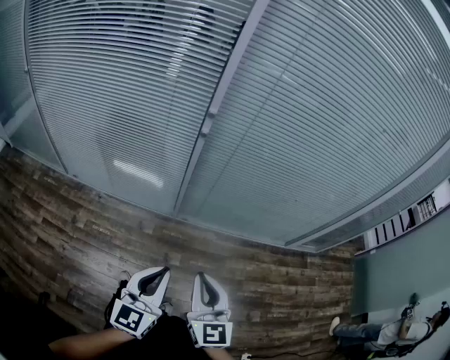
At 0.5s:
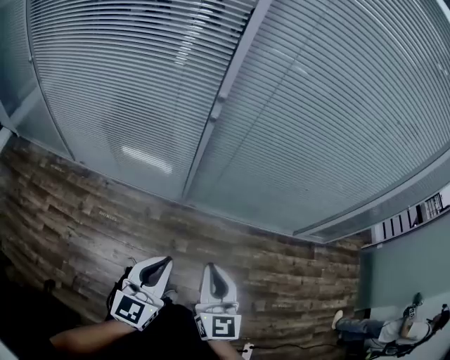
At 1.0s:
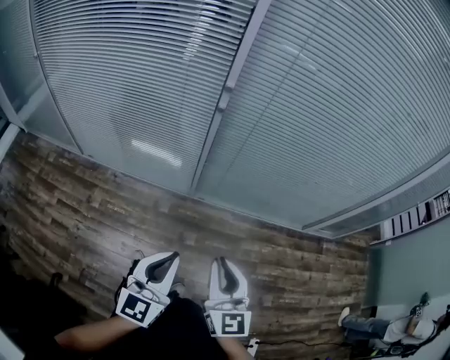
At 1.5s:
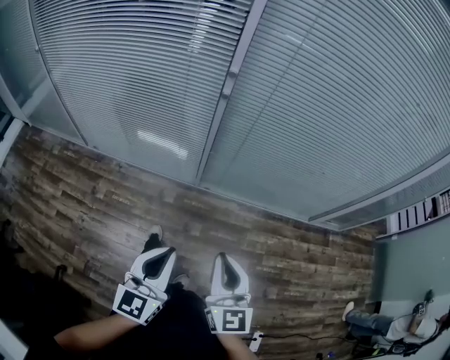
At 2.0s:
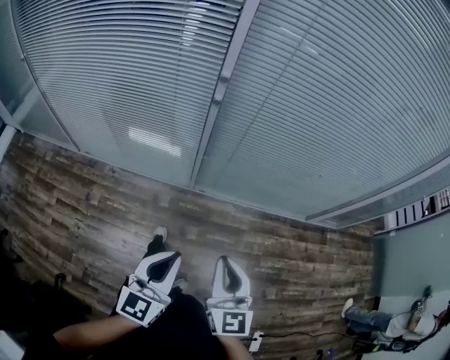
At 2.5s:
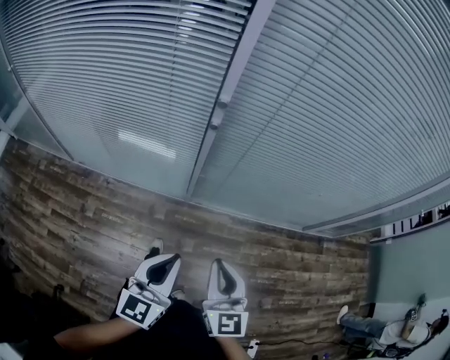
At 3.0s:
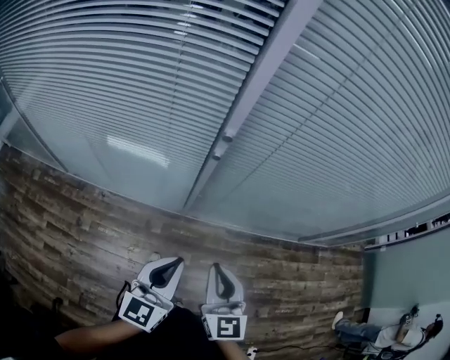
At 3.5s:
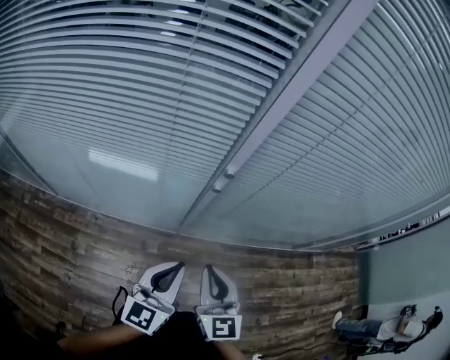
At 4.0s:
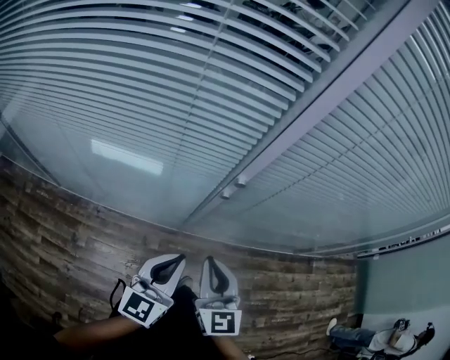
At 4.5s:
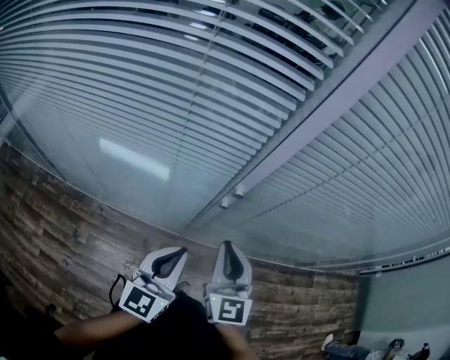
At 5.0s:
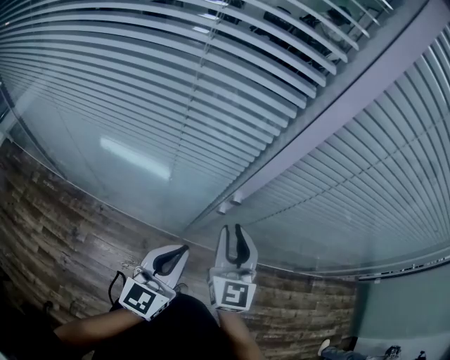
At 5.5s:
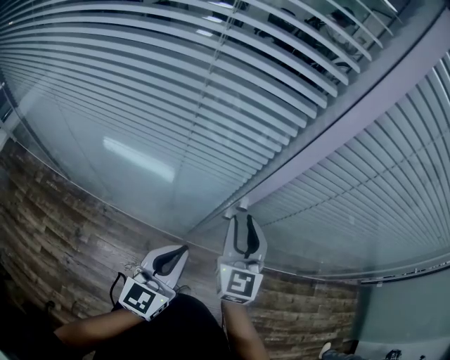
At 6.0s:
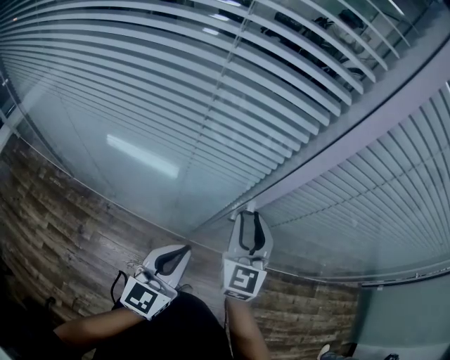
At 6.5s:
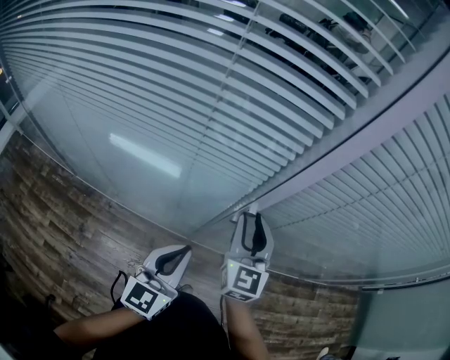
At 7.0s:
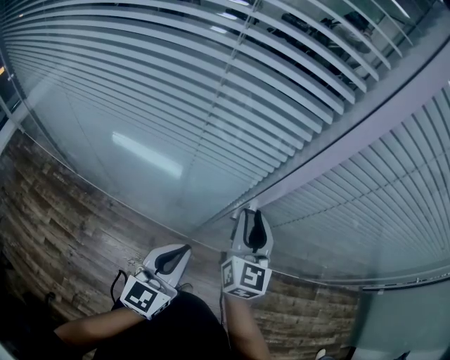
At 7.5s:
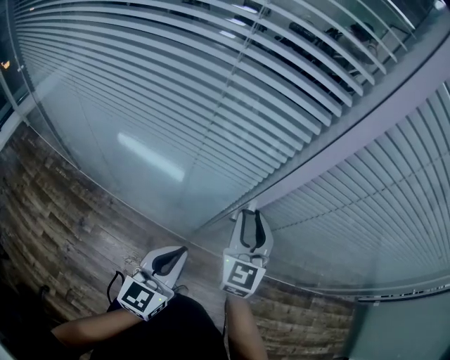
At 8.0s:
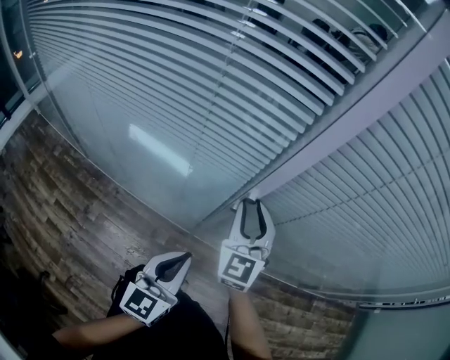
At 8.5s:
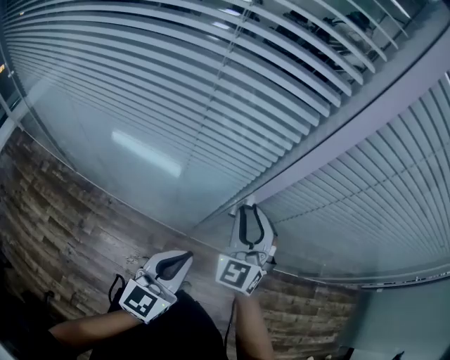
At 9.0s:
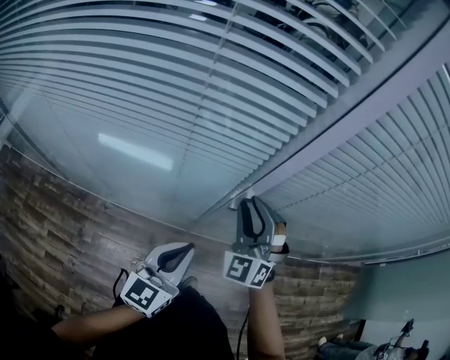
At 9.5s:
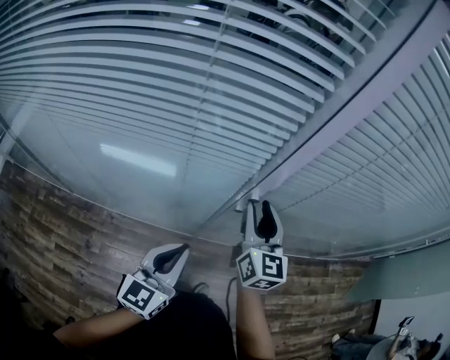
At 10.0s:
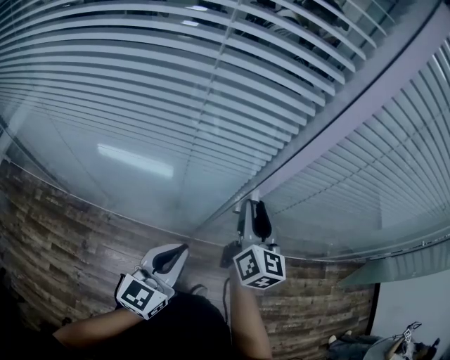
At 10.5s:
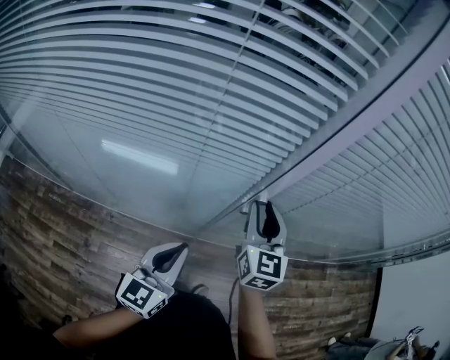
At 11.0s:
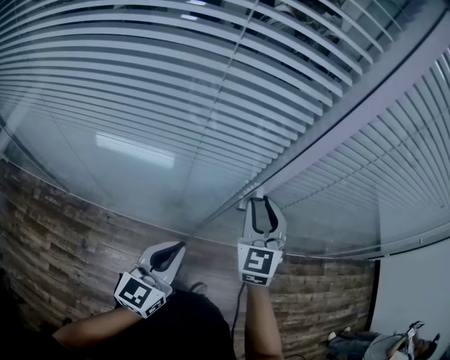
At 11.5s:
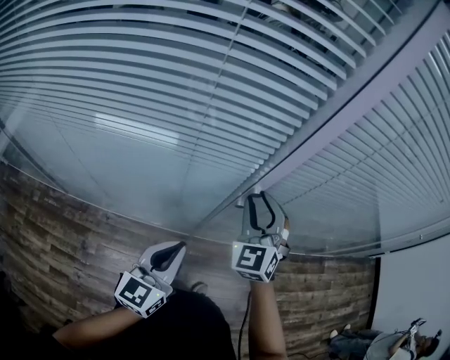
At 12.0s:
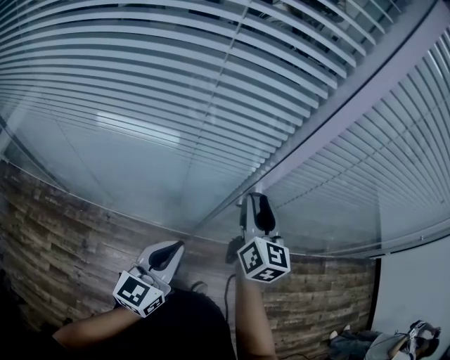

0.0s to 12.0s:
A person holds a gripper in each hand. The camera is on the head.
0.0s to 2.0s: The grippers stay close to where they were, moving slightly.
2.0s to 4.0s: The left gripper shifts some 25 cm forward, while the right gripper moves forward and to the left, about 30 cm.
4.0s to 6.0s: The right gripper travels forward by approximately 15 cm, and opens its fingers. The left gripper travels forward by approximately 5 cm.
6.0s to 8.0s: The left gripper shifts by some 5 cm.
8.0s to 10.0s: The left gripper shifts roughly 5 cm to the left, while the right gripper rotates around the line of its fingers by some 40 degrees, clockwise from behind.

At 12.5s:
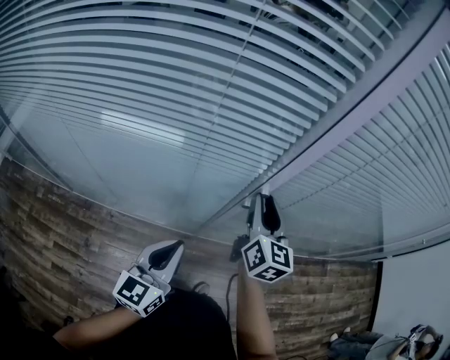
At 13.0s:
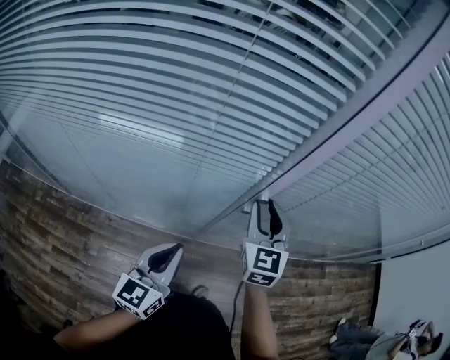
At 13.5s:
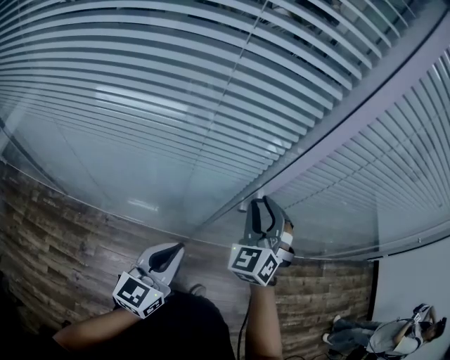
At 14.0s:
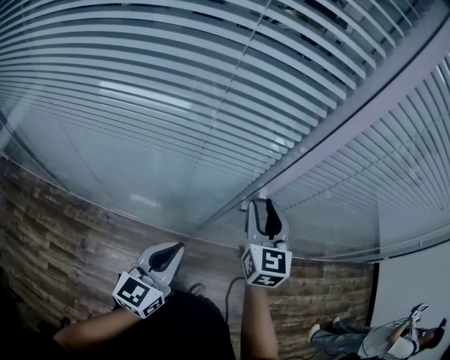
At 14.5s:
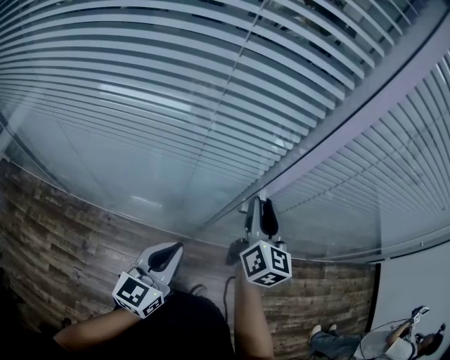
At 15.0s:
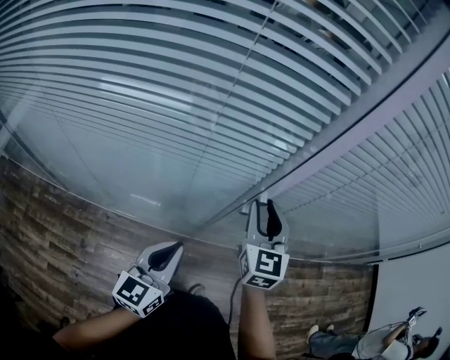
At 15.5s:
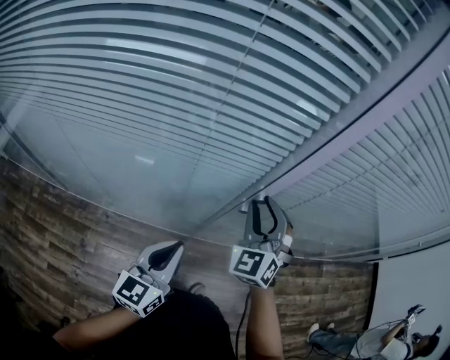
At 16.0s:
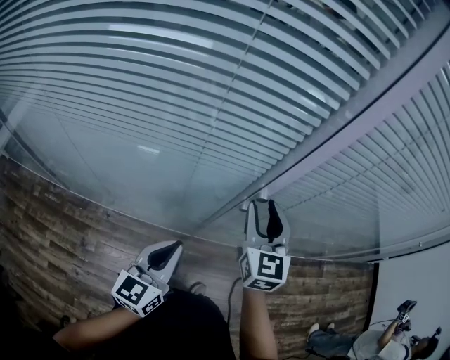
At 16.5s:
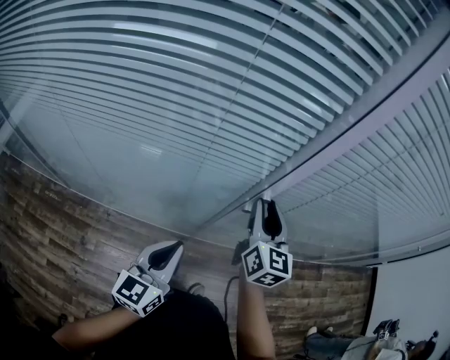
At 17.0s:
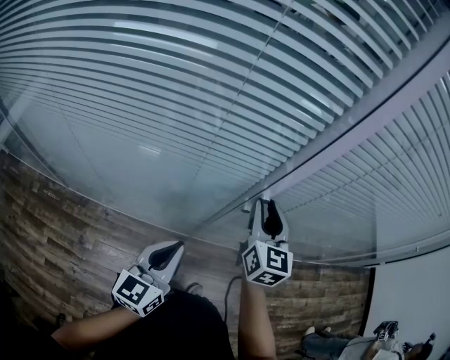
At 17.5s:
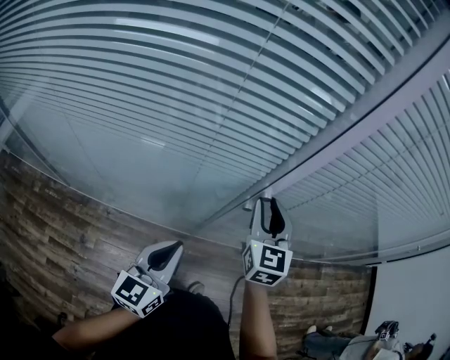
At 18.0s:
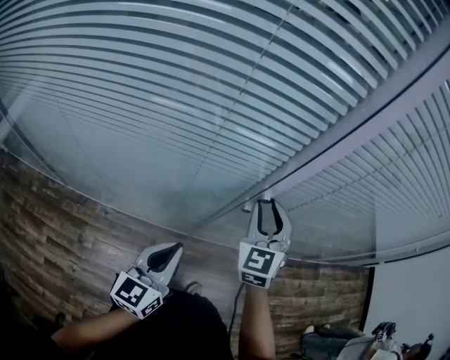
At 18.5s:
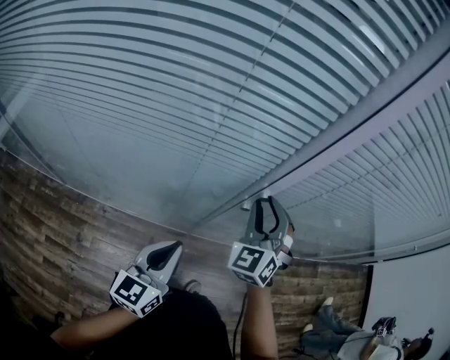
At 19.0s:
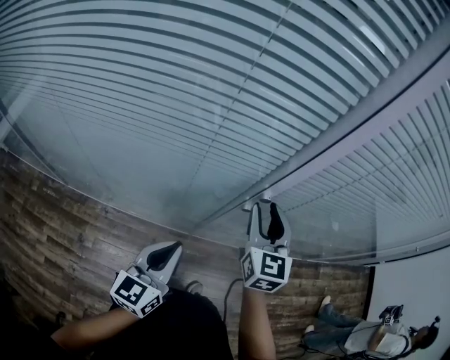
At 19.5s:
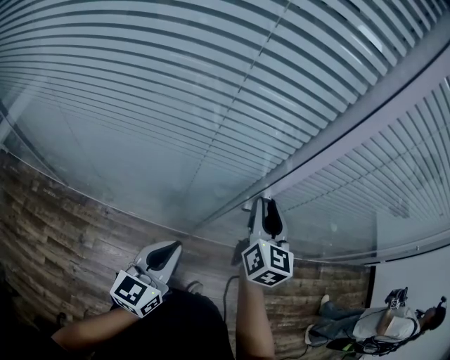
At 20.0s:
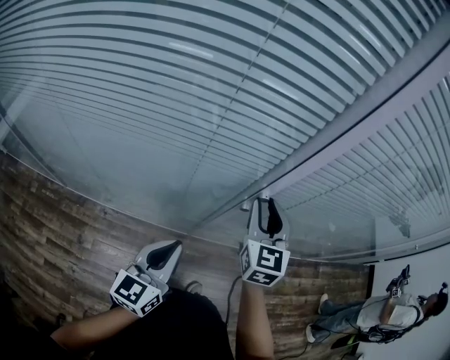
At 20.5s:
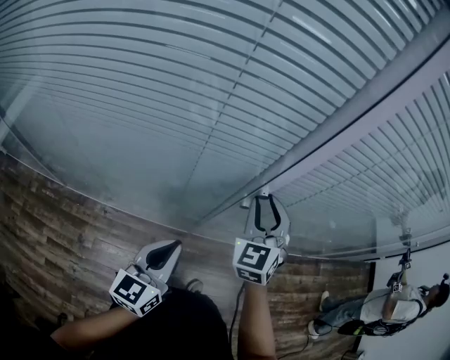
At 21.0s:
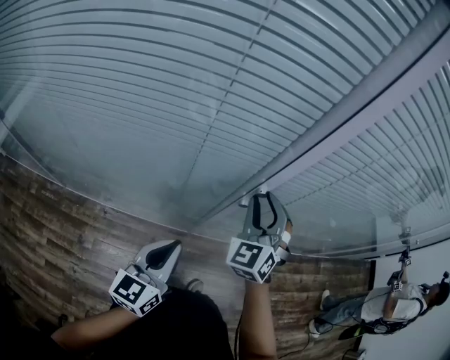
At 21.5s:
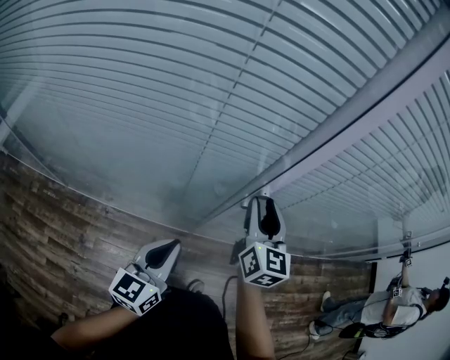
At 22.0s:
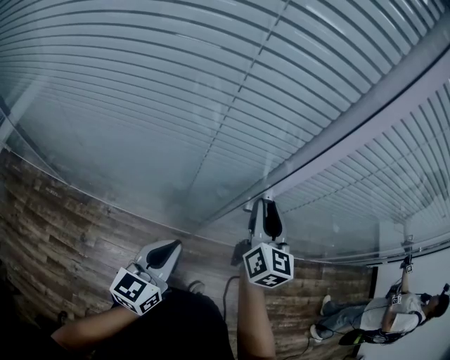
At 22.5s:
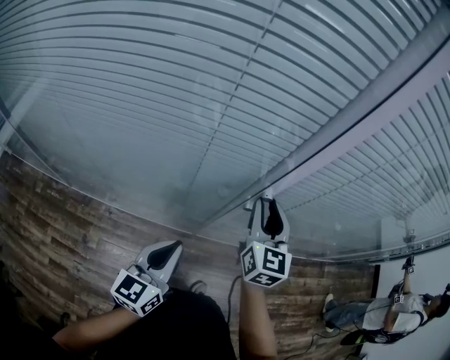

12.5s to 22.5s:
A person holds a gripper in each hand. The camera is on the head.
16.5s to 18.5s: The right gripper rolls counterclockwise, seen from behind, by roughly 60 degrees.
20.5s to 22.5s: The right gripper turns by about 30 degrees.

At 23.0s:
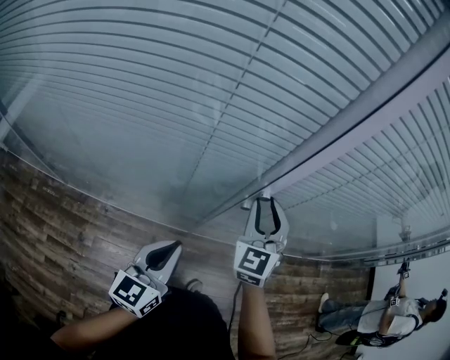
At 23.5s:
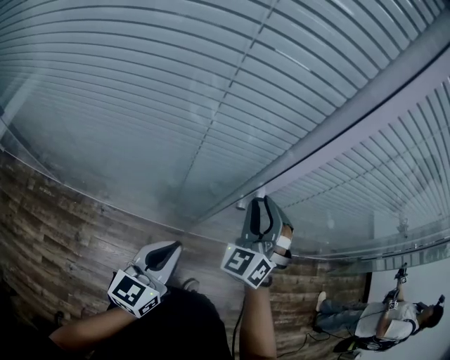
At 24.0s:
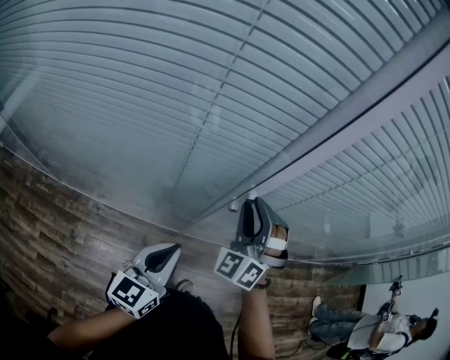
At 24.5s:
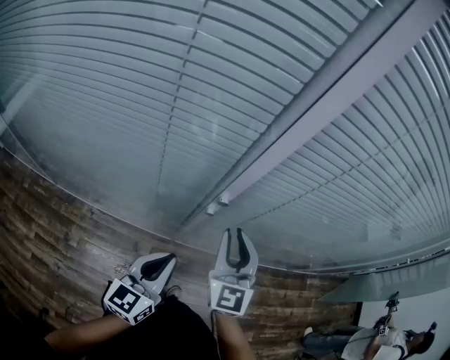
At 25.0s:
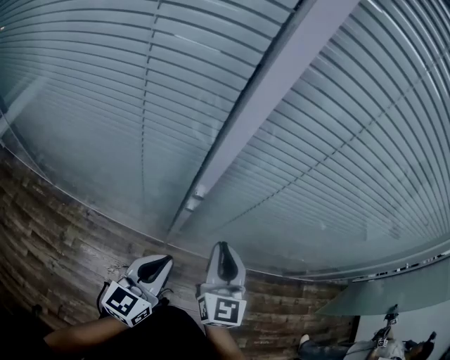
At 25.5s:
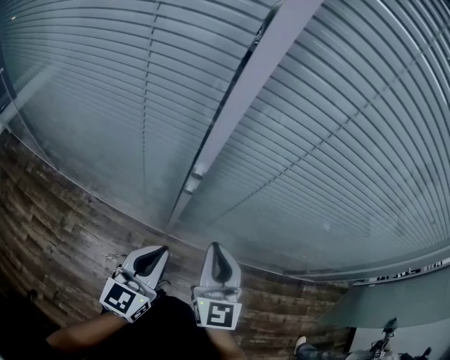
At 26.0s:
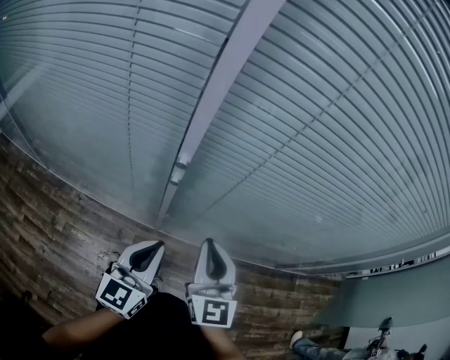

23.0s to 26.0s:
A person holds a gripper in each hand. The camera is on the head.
23.0s to 24.5s: The right gripper travels backward and to the right by about 10 cm, and changes its angle by approximately 20 degrees. The left gripper shifts some 10 cm to the right.
24.5s to 26.0s: The left gripper moves to the right, roughly 5 cm; the right gripper shifts roughly 10 cm backward and to the right.

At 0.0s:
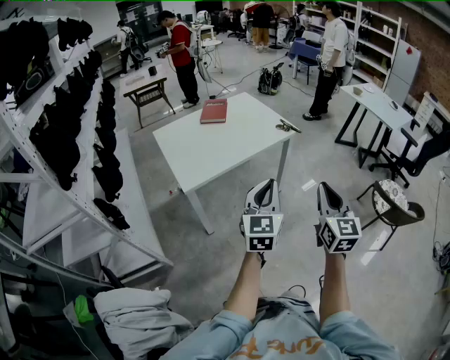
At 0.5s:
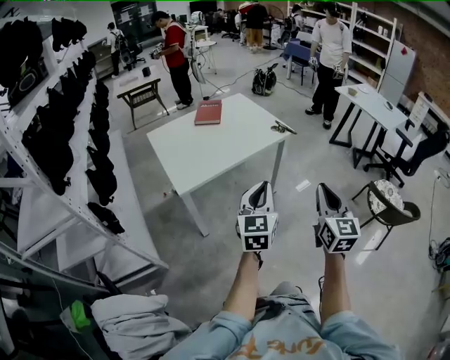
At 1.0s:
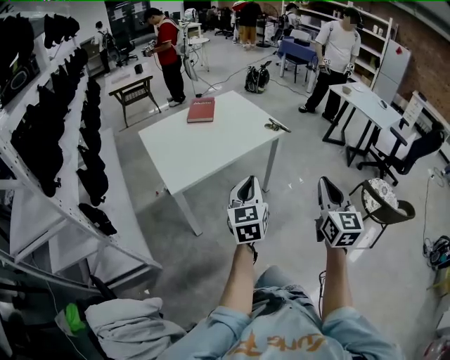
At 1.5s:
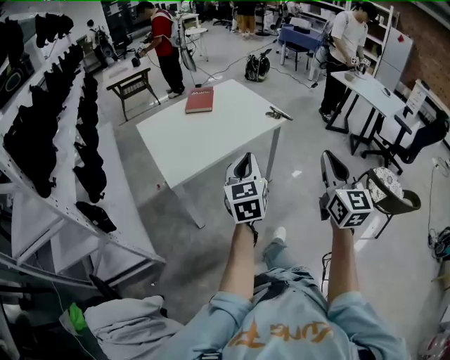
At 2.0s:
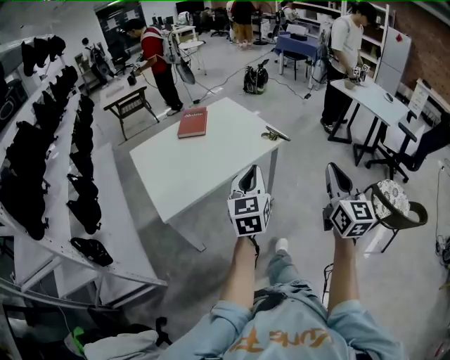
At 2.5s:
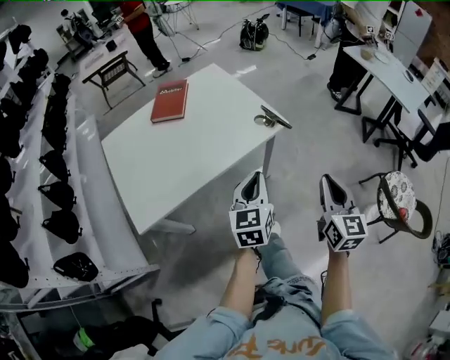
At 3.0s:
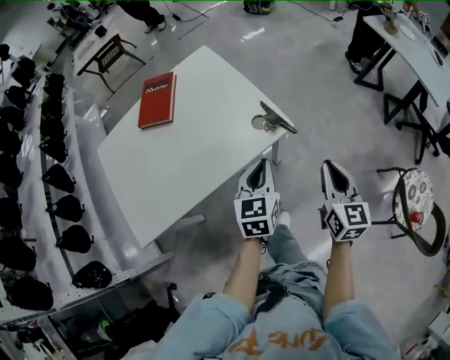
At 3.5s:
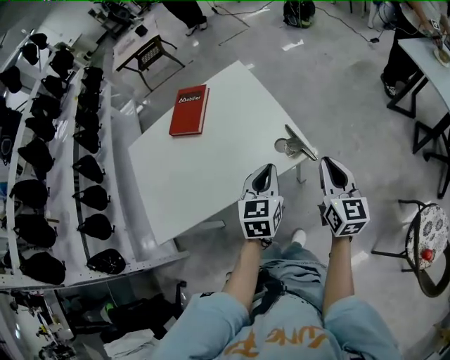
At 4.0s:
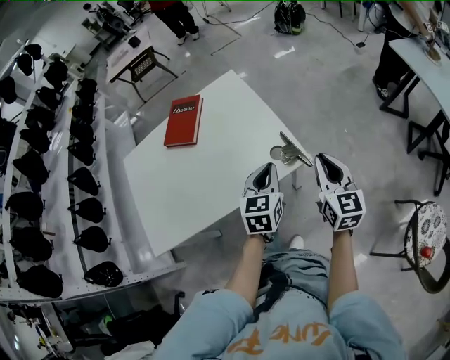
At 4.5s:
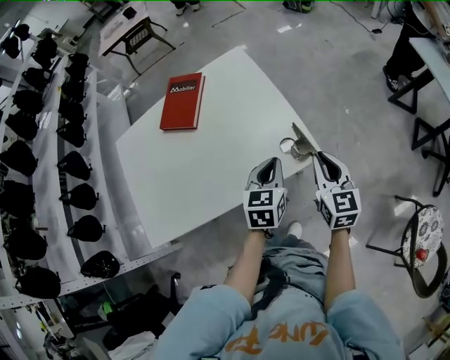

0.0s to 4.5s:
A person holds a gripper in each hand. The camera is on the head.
0.0s to 2.0s: The right gripper is displaced forward and to the right by about 20 cm. The left gripper moves forward, about 20 cm.
2.0s to 4.5s: The pair of grippers is taken forward, about 40 cm. The grippers both shift downward by some 20 cm. The right gripper turns by about 30 degrees. The left gripper turns by about 30 degrees.
